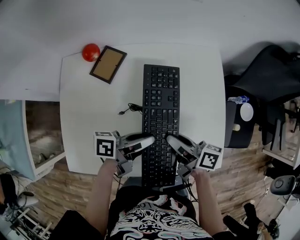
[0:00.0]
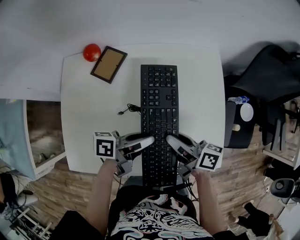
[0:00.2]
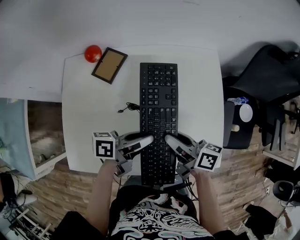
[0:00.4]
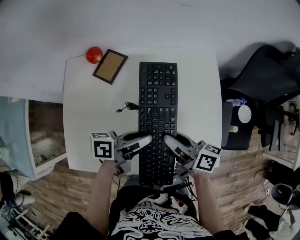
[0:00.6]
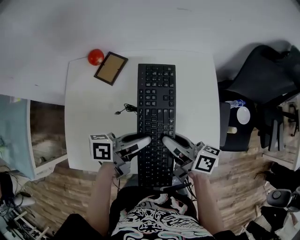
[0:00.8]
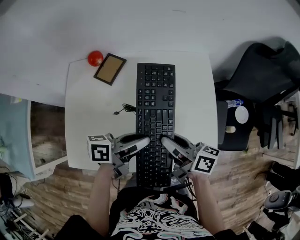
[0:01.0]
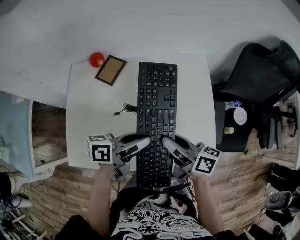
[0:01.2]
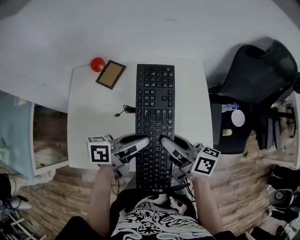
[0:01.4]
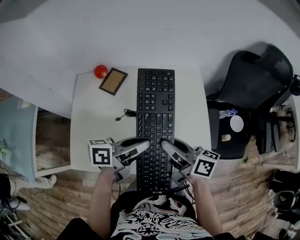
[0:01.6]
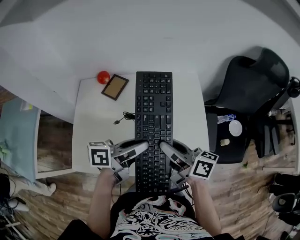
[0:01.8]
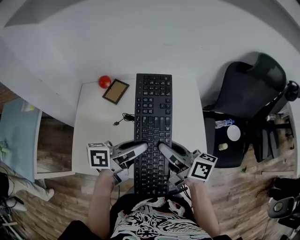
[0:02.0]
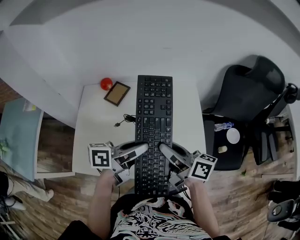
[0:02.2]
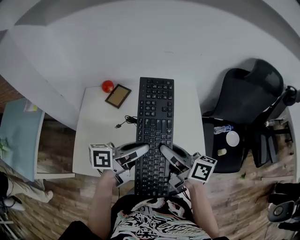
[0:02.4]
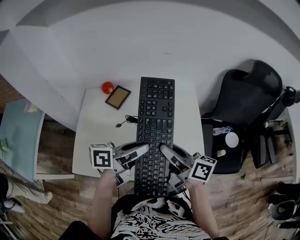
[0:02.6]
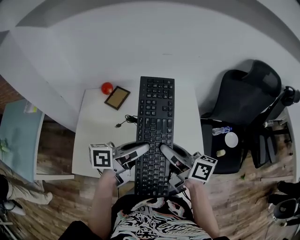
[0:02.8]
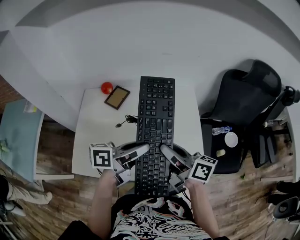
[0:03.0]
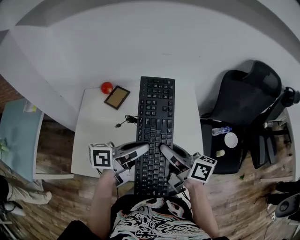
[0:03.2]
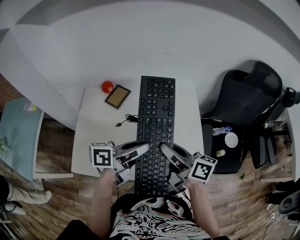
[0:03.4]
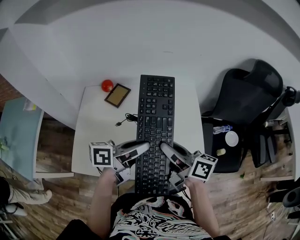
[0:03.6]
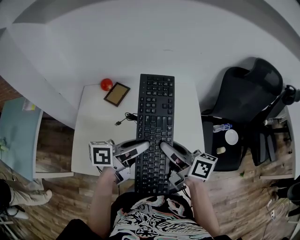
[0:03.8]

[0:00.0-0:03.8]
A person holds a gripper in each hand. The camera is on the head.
0:00.0 to 0:02.6: The grippers move only a little.
0:02.6 to 0:03.8: Both grippers stay about where they are.

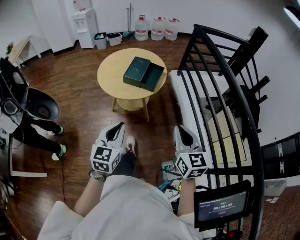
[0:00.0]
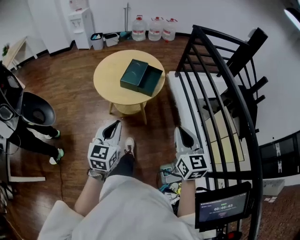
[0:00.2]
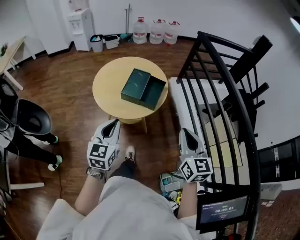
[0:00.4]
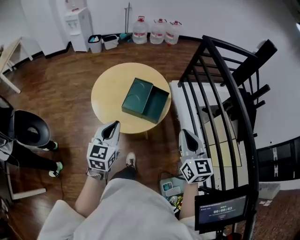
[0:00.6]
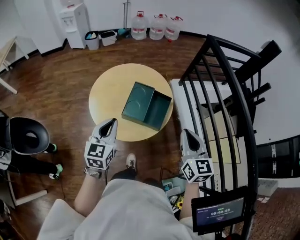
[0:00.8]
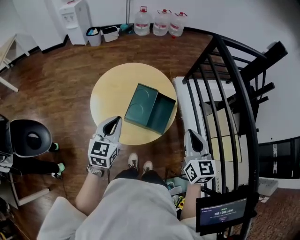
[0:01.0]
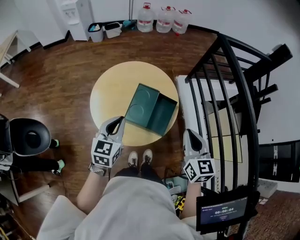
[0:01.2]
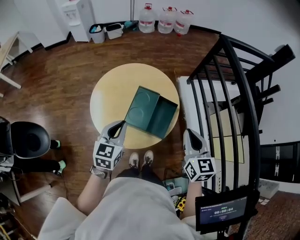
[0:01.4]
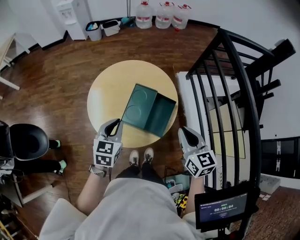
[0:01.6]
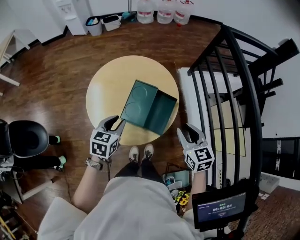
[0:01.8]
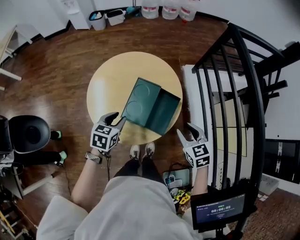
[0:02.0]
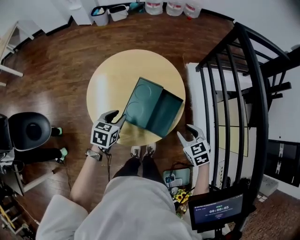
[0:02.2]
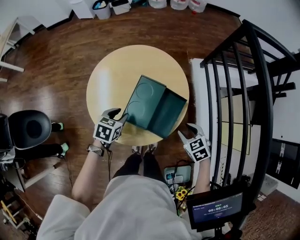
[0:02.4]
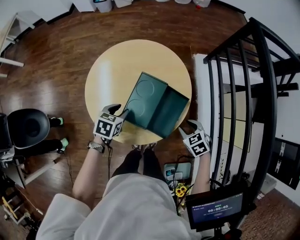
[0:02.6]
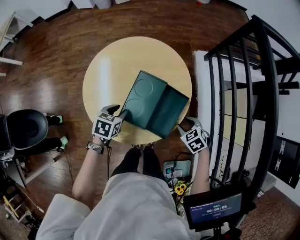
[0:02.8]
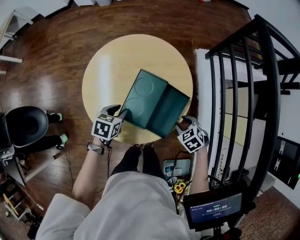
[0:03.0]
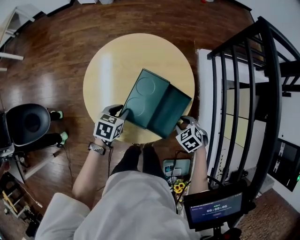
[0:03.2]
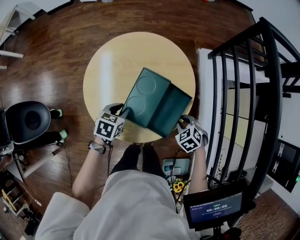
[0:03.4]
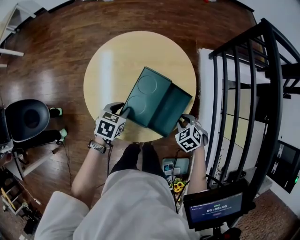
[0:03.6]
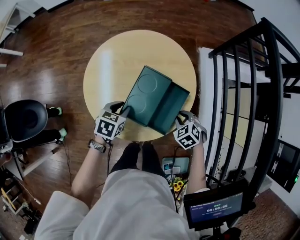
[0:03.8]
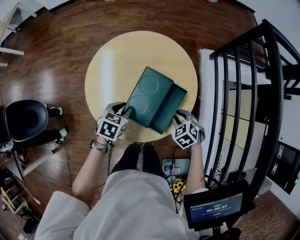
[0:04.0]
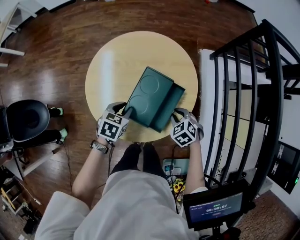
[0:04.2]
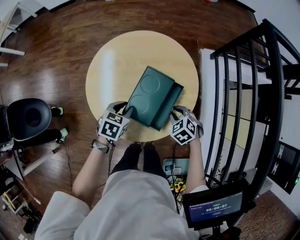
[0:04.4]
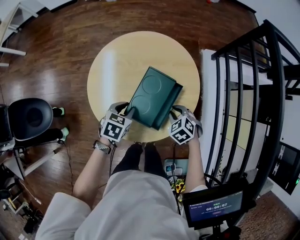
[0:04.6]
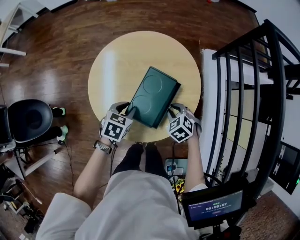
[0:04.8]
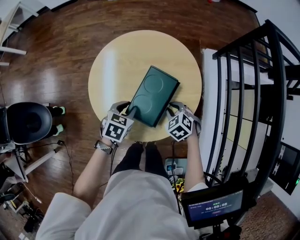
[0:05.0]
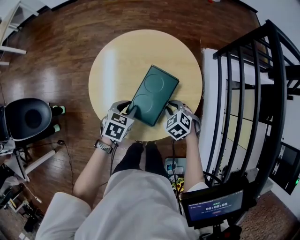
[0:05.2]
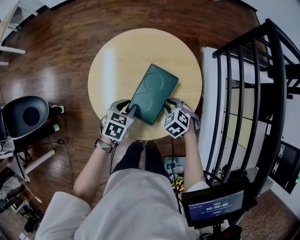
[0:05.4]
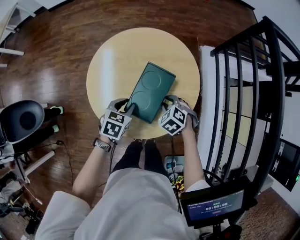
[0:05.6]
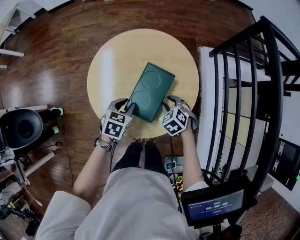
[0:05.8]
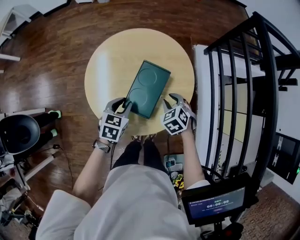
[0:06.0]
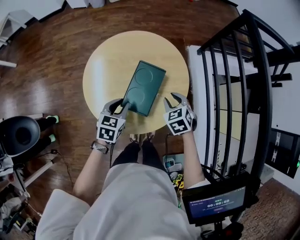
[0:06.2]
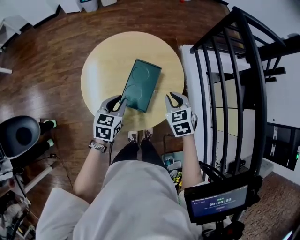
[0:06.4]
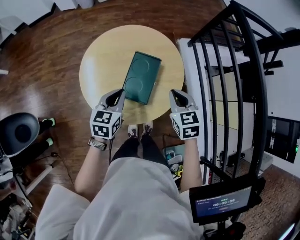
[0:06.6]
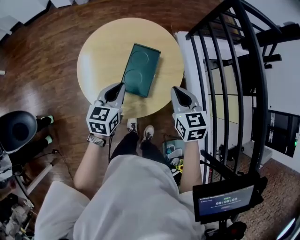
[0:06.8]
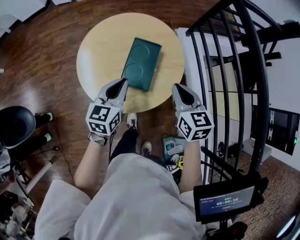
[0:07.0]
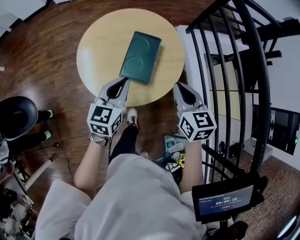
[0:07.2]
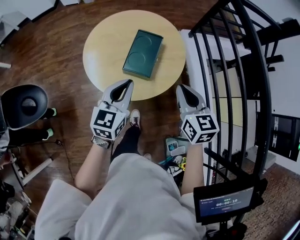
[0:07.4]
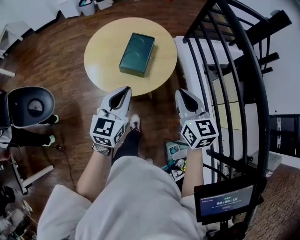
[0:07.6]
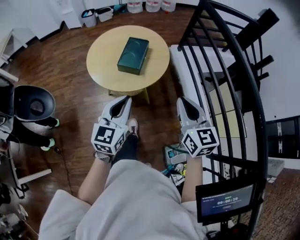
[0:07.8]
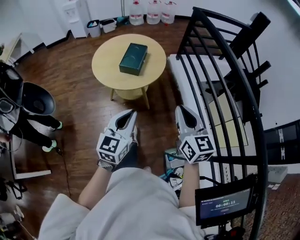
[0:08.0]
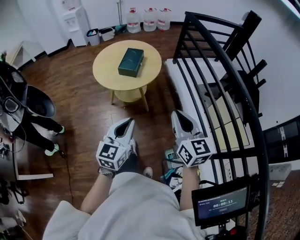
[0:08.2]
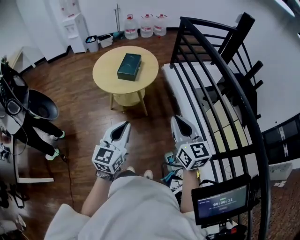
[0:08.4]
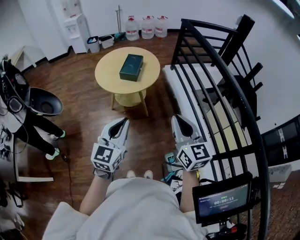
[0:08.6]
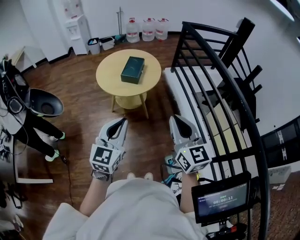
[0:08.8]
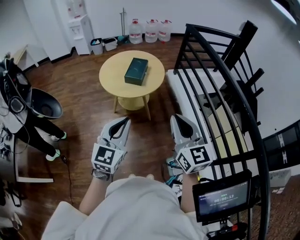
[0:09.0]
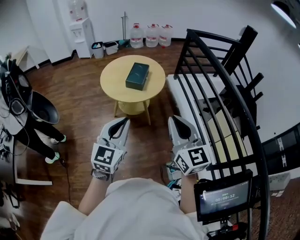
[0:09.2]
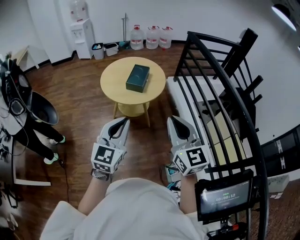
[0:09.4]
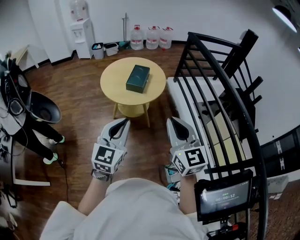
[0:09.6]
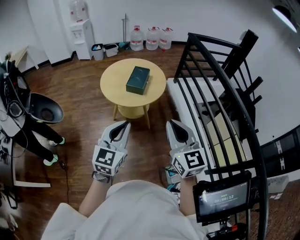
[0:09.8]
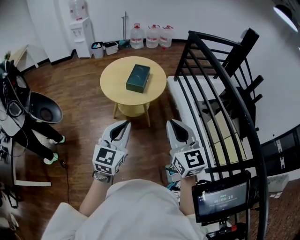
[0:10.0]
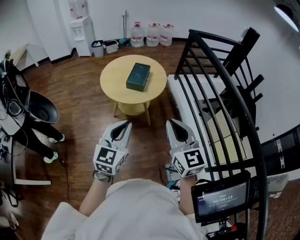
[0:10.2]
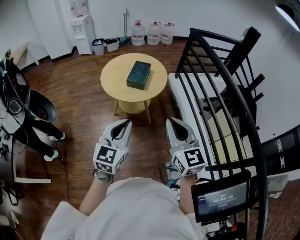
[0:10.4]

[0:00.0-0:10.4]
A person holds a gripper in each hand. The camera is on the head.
0:00.0 to 0:01.4: Both grippers move forward, some 30 cm.
0:01.4 to 0:03.0: The left gripper travels downward by approximately 20 cm, points its fingers about 30 degrees further downward, and opens; the right gripper is displaced downward by roughly 30 cm, angles its fingers downward, by approximately 50 degrees, and opens its fingers.
0:03.0 to 0:04.4: The right gripper goes approximately 5 cm to the left, and closes its fingers.
0:04.4 to 0:06.0: The right gripper ends up about 5 cm from where it was.
0:06.0 to 0:07.4: Both grippers move upward and backward, about 20 cm. The right gripper angles its fingers upward, by roughly 30 degrees, and closes its fingers, while the left gripper points its fingers approximately 30 degrees further upward, and closes up.
0:07.4 to 0:09.0: The two grippers go some 35 cm backward and upward. The right gripper changes its angle by about 30 degrees. The left gripper turns by about 20 degrees.
0:09.0 to 0:10.4: There are only small adjustments of the grippers.

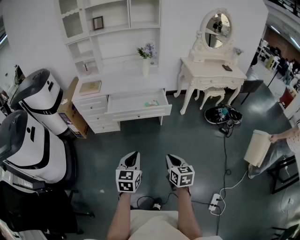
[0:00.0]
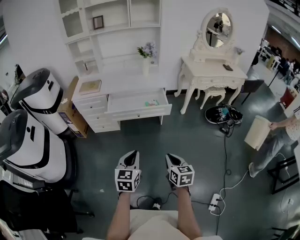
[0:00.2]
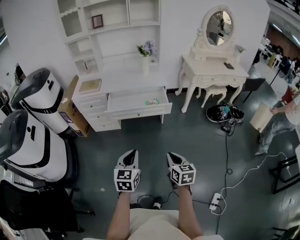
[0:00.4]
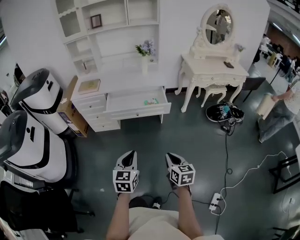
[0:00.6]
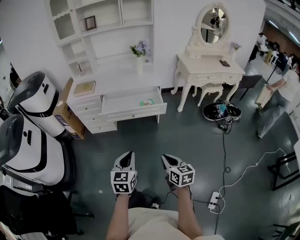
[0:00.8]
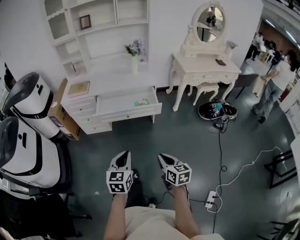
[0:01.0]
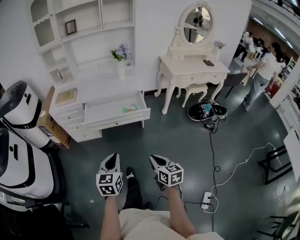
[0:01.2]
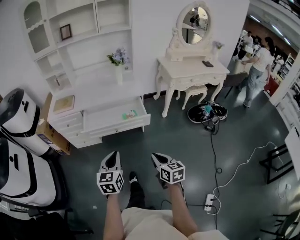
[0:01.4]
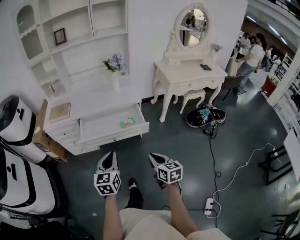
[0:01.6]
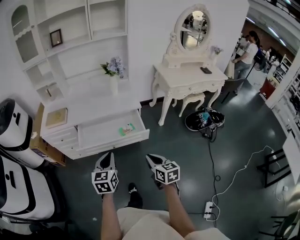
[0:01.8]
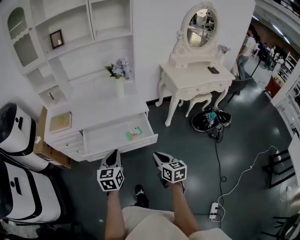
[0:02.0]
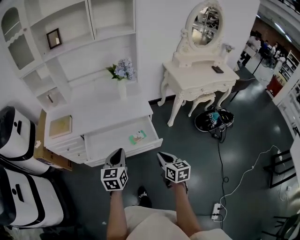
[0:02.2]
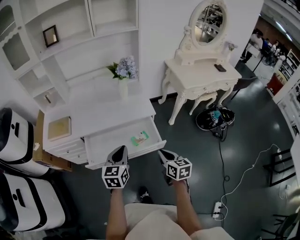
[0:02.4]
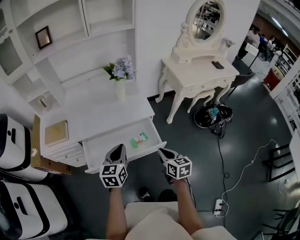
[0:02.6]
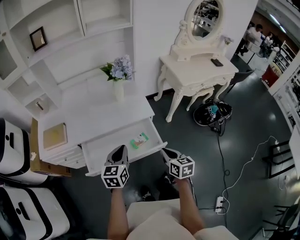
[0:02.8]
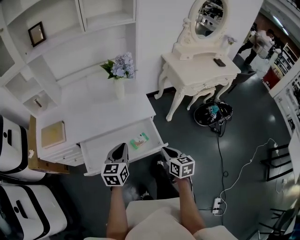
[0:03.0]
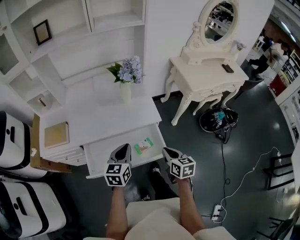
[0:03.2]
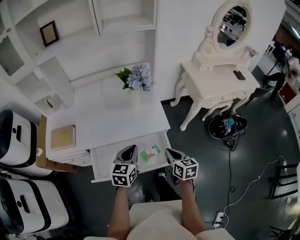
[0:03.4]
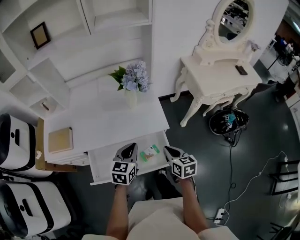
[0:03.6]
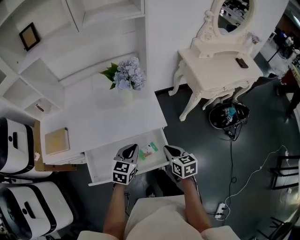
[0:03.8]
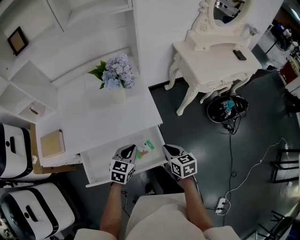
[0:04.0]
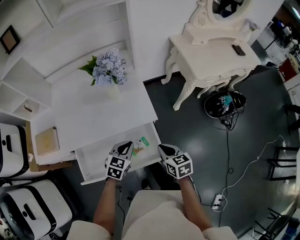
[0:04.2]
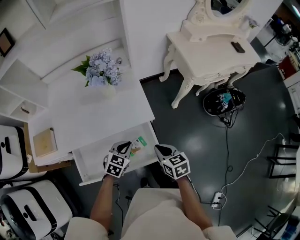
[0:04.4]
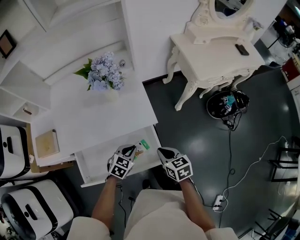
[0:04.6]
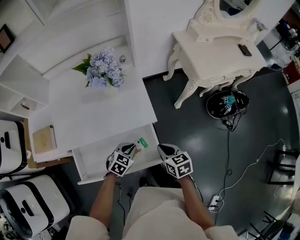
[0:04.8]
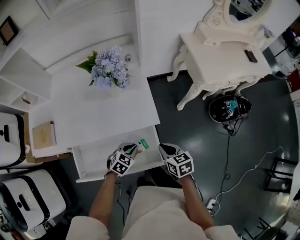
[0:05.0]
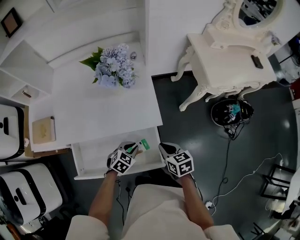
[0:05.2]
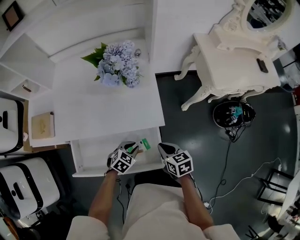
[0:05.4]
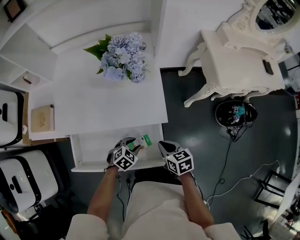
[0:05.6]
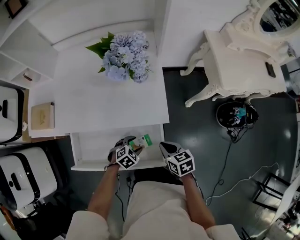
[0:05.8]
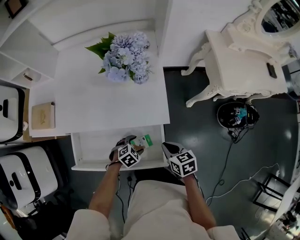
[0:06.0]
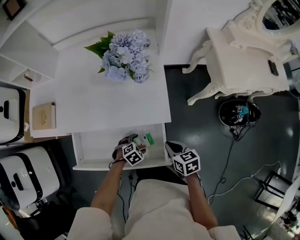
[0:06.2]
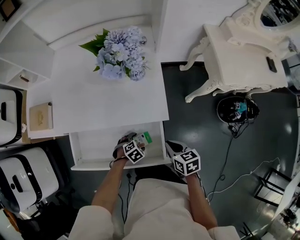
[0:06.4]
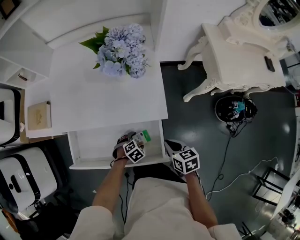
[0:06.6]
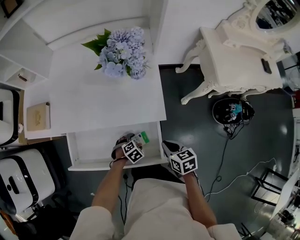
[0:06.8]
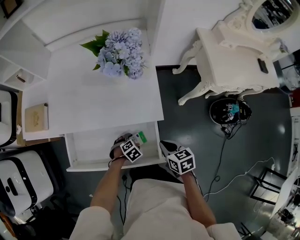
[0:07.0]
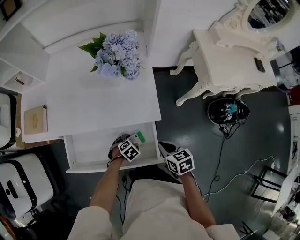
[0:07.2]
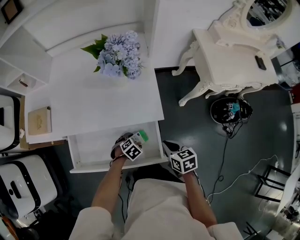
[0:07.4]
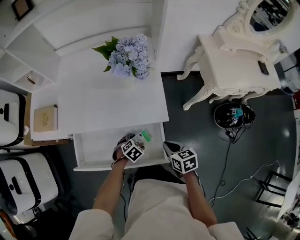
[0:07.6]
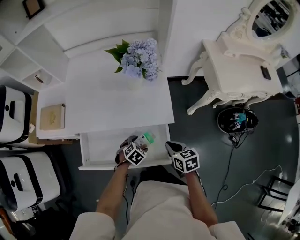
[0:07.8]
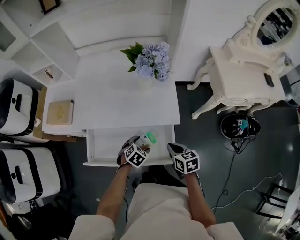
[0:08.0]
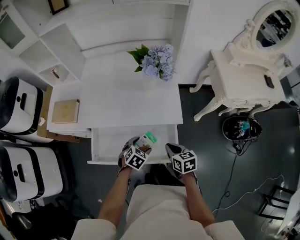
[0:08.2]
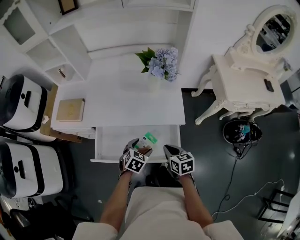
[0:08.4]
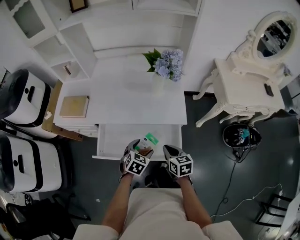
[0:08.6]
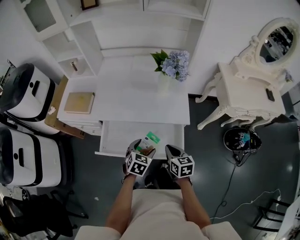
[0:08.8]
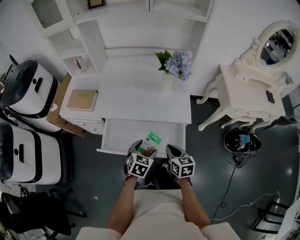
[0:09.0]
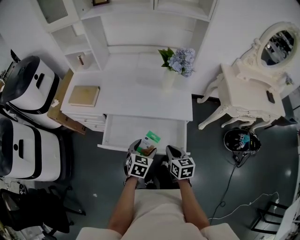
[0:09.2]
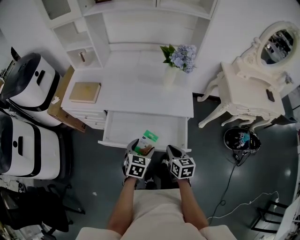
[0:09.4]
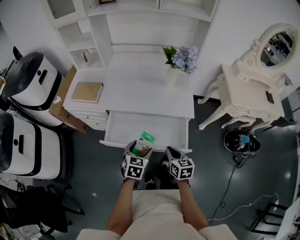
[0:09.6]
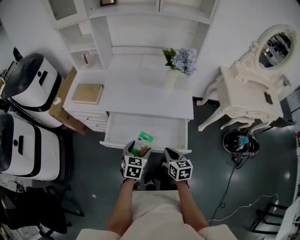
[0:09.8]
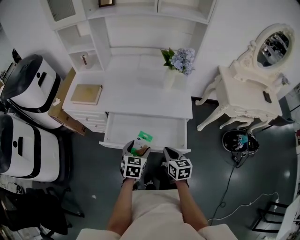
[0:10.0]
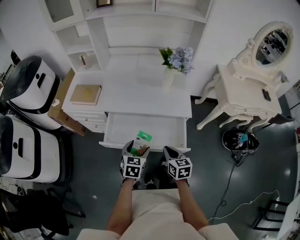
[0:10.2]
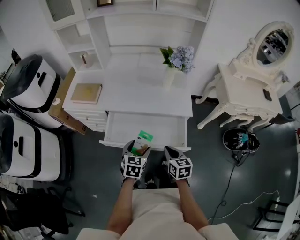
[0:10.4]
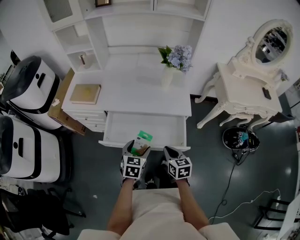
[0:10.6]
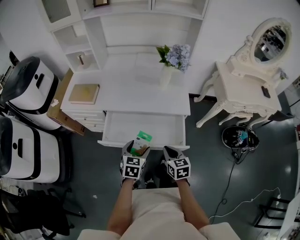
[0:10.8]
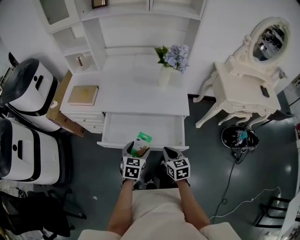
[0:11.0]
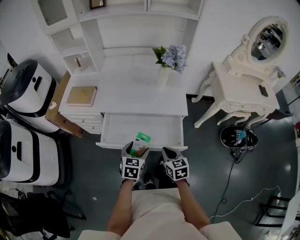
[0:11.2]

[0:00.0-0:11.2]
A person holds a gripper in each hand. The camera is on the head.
0:00.0 to 0:01.6: Both grippers travel together forward, some 20 cm.
0:01.6 to 0:03.2: Both grippers travel together forward, approximately 35 cm.
0:03.2 to 0:04.8: The left gripper heads downward and to the right, covering some 25 cm, and rotates some 40 degrees; the right gripper heads forward and downward, covering approximately 15 cm.
0:04.8 to 0:06.4: The left gripper travels downward by approximately 15 cm, changes its angle by approximately 20 degrees, and opens up, while the right gripper moves downward, approximately 5 cm.
0:06.4 to 0:08.0: The right gripper travels to the left by roughly 5 cm. Meanwhile the left gripper is displaced upward by some 15 cm.
0:08.0 to 0:09.6: The left gripper travels upward, backward and to the left by approximately 25 cm, and rotates about 40 degrees; the right gripper shifts some 15 cm backward, to the left and upward.
0:09.6 to 0:11.2: The grippers move only a little.
